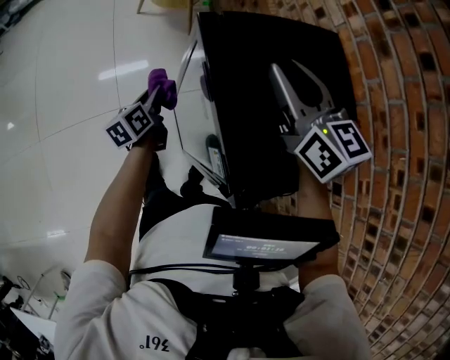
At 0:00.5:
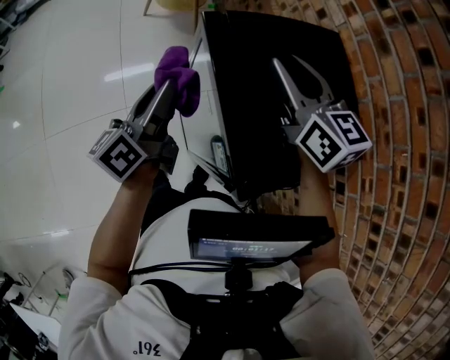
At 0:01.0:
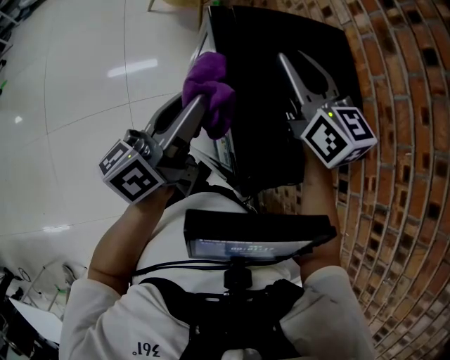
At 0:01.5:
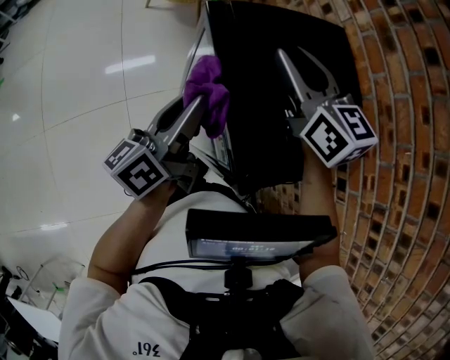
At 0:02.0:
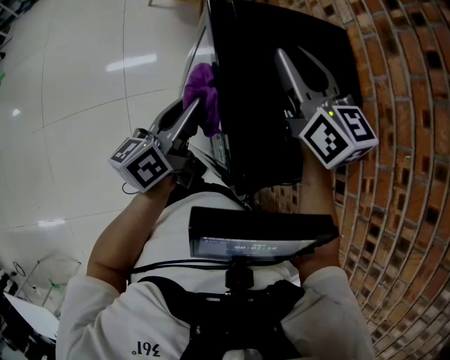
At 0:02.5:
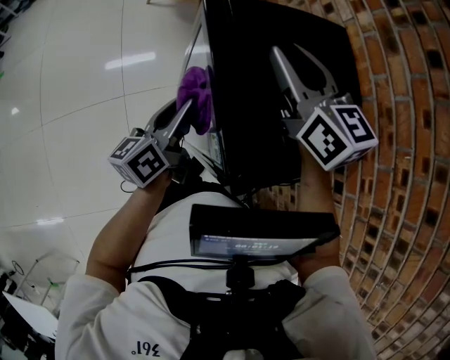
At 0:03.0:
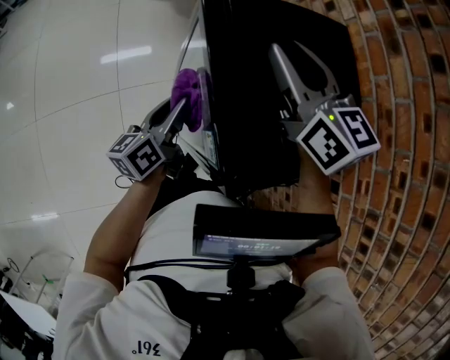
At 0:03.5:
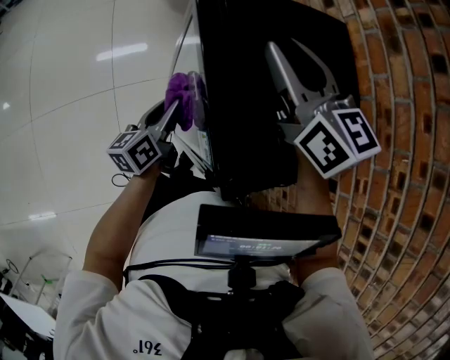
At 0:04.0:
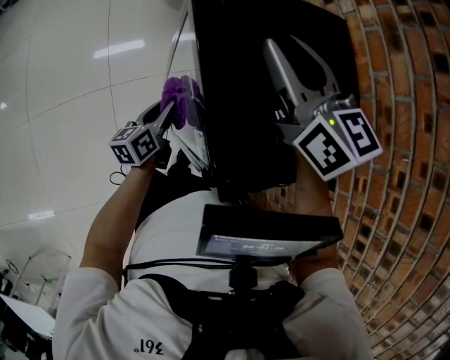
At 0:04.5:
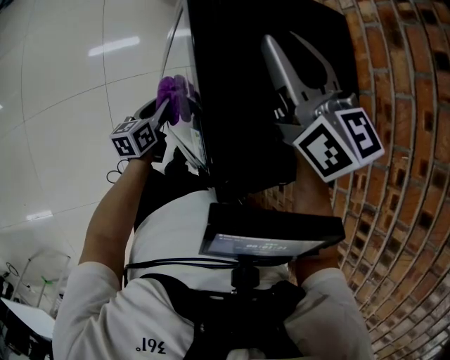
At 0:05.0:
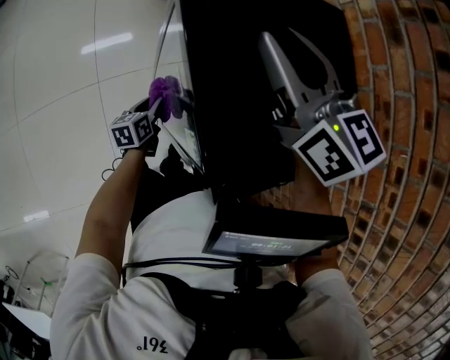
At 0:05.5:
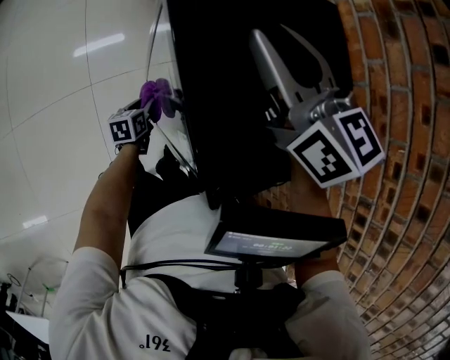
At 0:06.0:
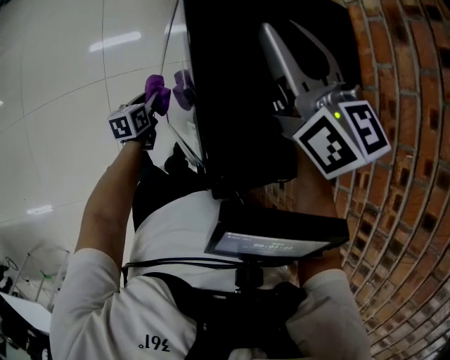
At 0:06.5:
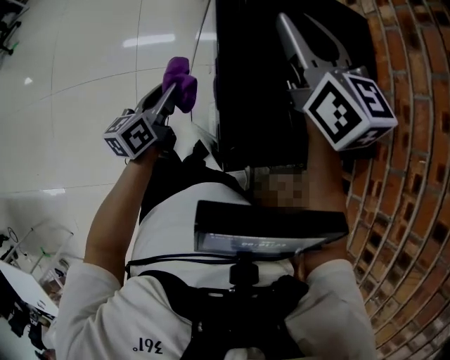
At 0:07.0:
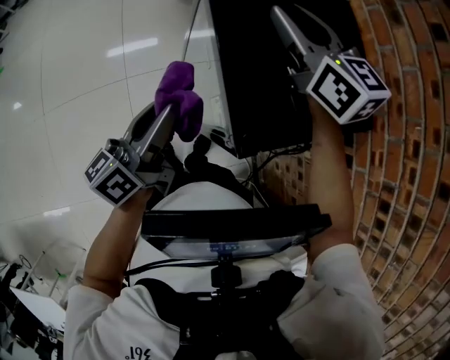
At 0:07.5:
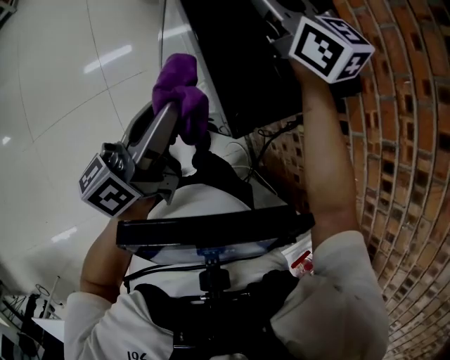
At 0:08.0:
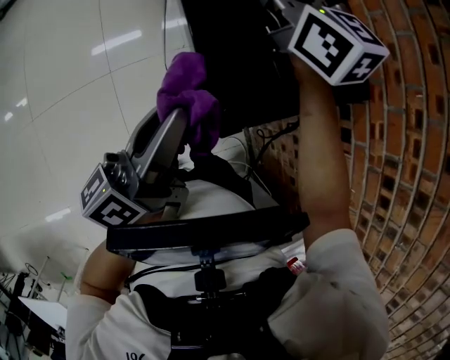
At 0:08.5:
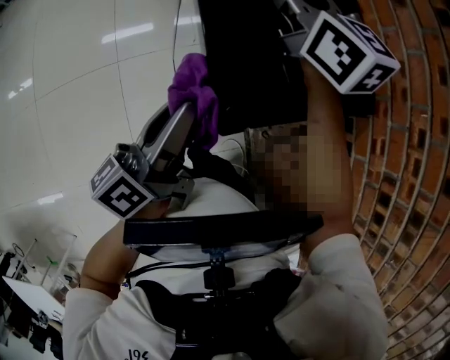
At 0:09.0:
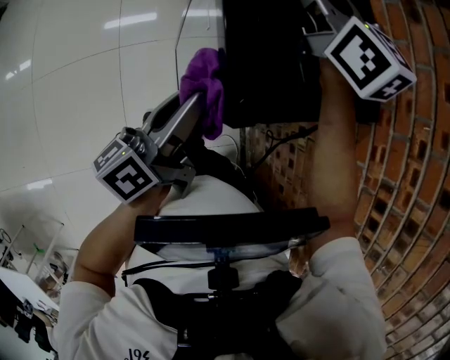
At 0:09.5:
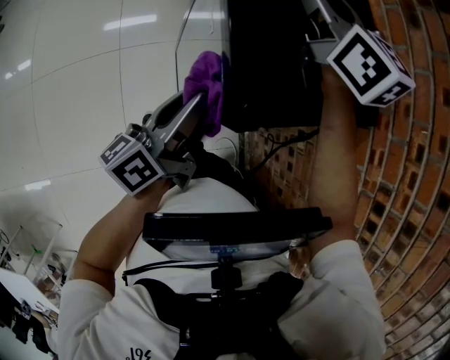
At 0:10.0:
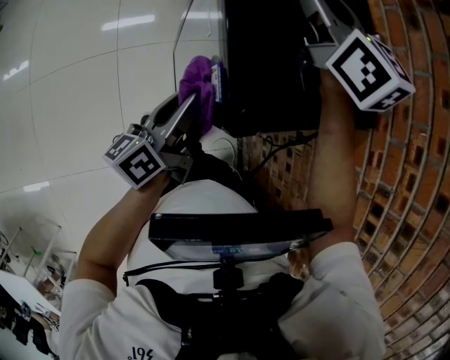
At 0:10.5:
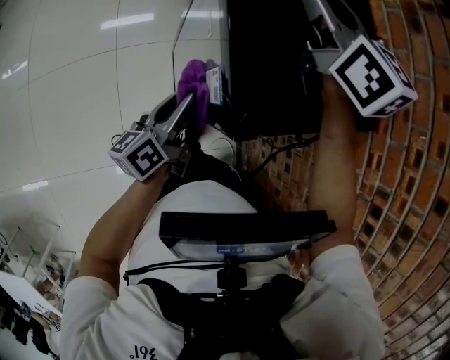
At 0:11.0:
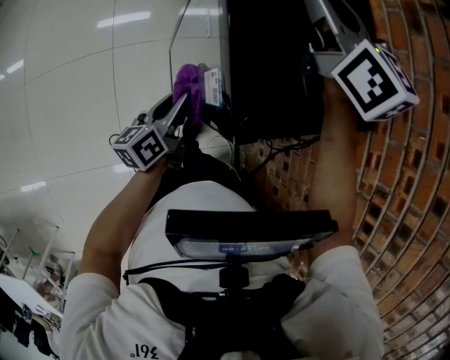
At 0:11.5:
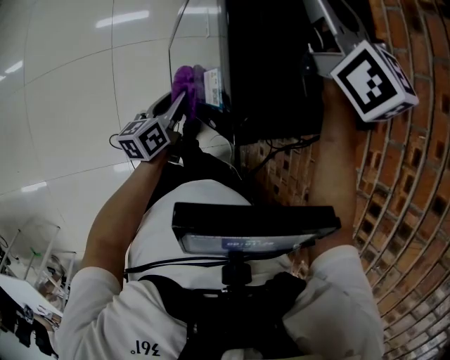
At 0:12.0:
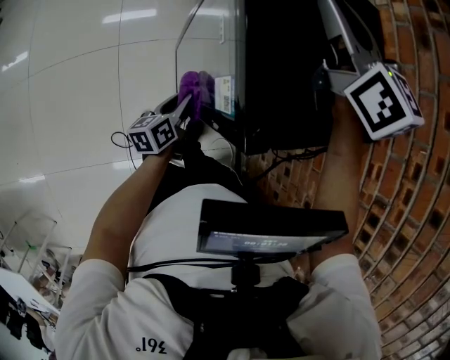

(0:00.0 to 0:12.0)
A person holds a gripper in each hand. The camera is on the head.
0:00.0 - 0:02.0: The left gripper travels upward, backward and to the right by roughly 20 cm, and turns by roughly 30 degrees.
0:02.0 - 0:04.0: The left gripper shifts about 20 cm downward, and turns by some 20 degrees.
0:04.0 - 0:06.0: The left gripper is displaced downward by roughly 10 cm.
0:06.0 - 0:08.0: The left gripper shifts about 40 cm upward, and tilts its fingers roughly 50 degrees upward.
0:08.0 - 0:10.0: The left gripper travels downward by about 15 cm.
0:10.0 - 0:12.0: The left gripper is displaced downward by roughly 20 cm, and rotates about 20 degrees.

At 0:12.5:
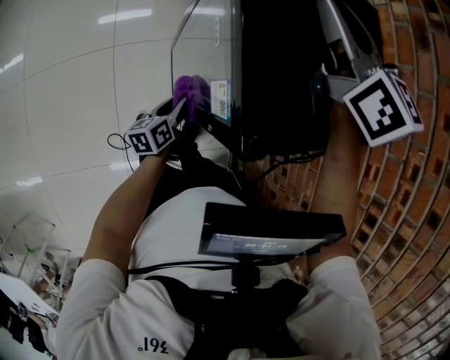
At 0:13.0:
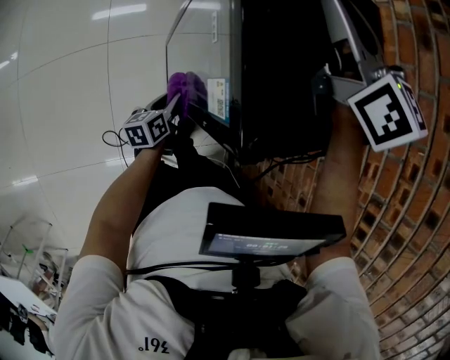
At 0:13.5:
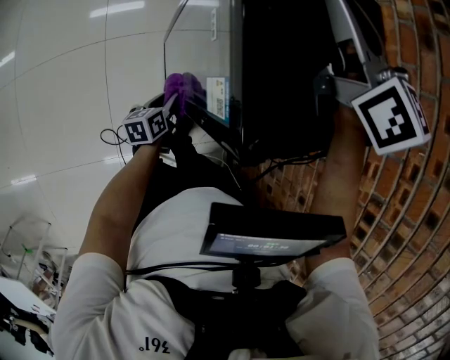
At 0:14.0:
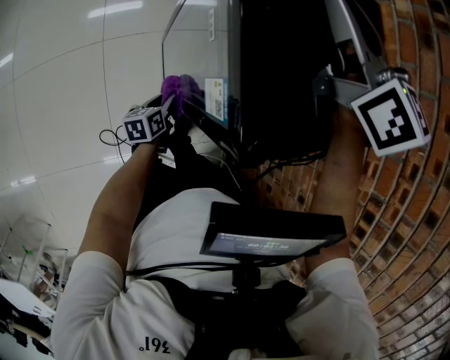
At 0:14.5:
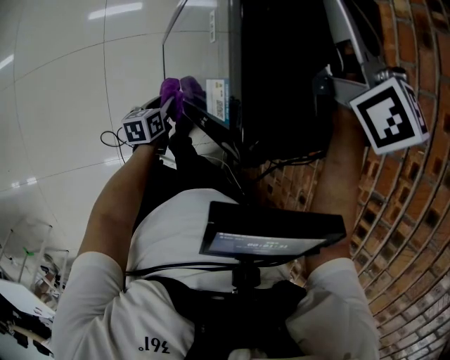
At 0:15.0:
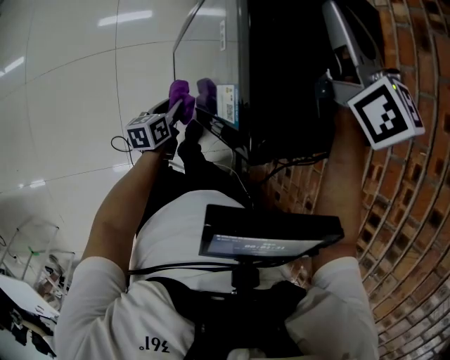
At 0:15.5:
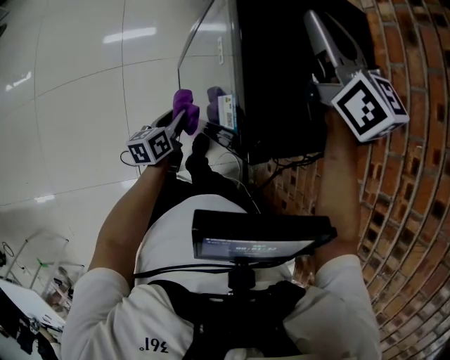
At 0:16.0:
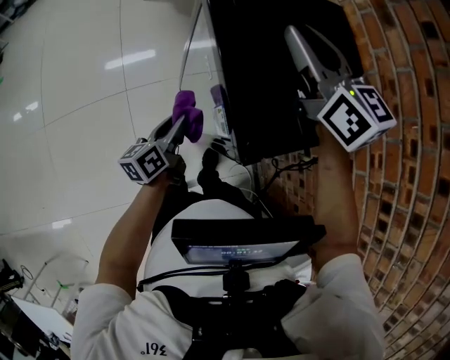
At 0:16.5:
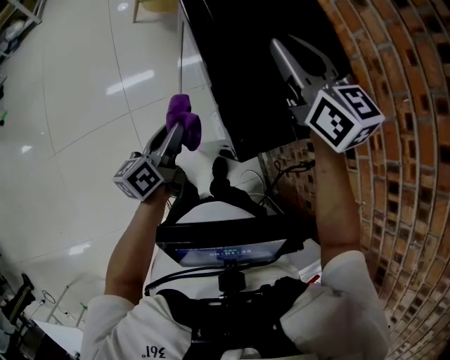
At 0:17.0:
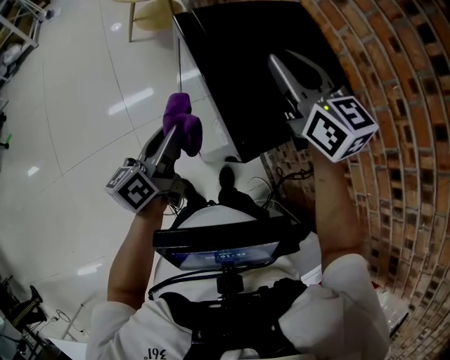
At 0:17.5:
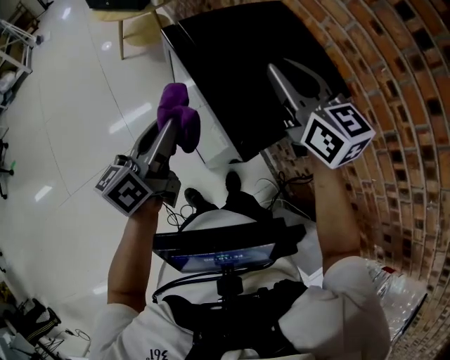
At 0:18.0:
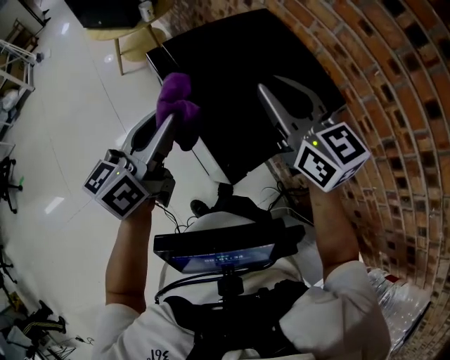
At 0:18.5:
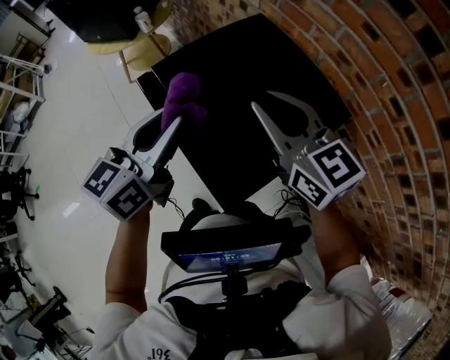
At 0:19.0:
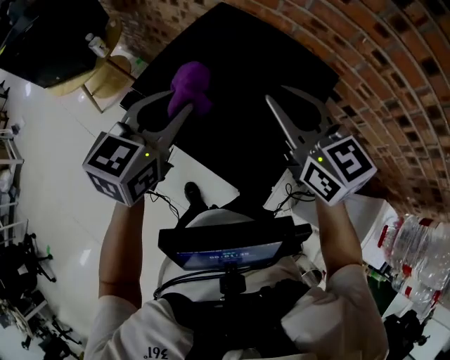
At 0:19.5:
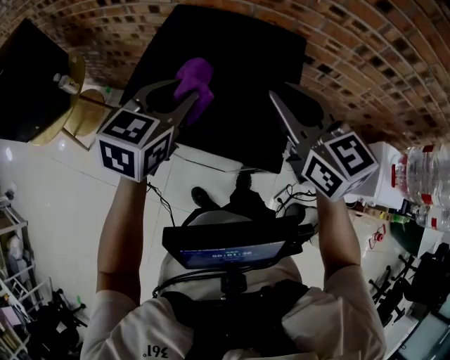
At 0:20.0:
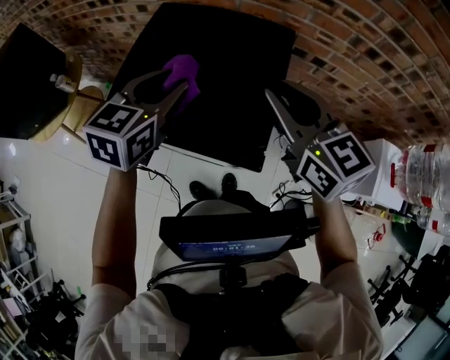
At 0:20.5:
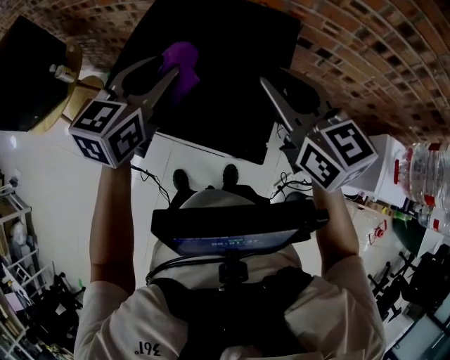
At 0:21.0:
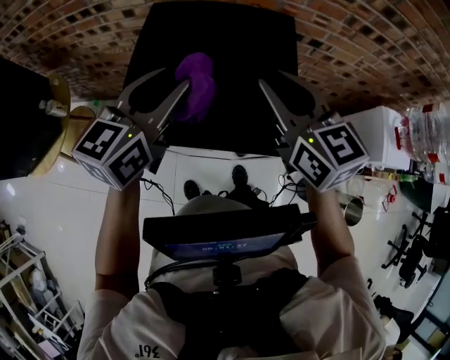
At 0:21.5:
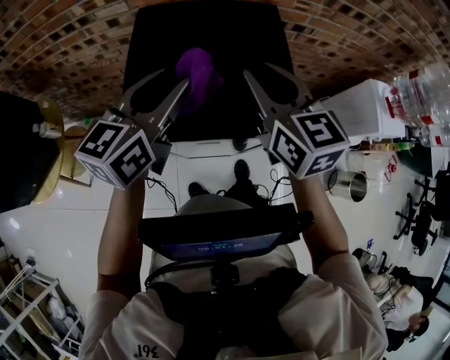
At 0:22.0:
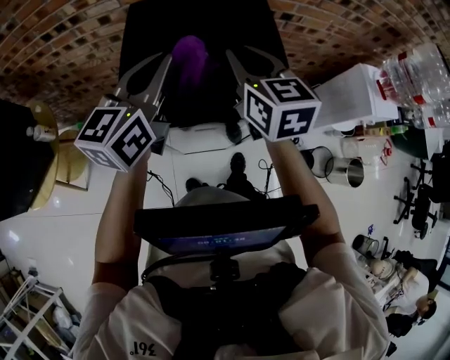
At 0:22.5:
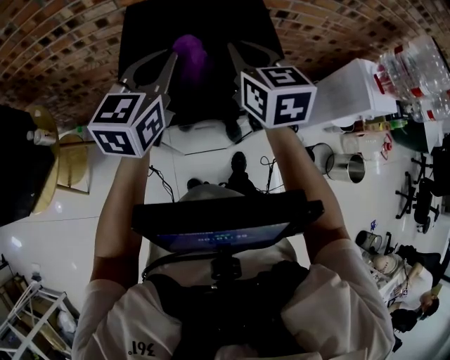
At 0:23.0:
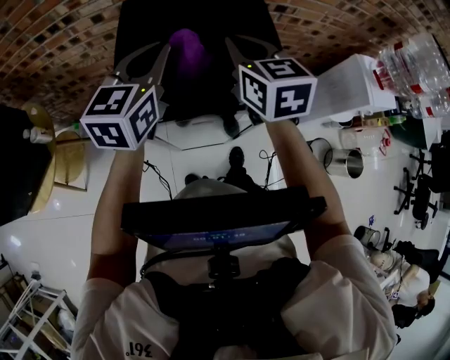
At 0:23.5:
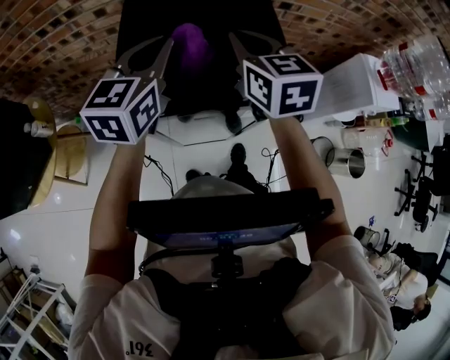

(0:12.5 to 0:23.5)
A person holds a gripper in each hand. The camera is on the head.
0:12.5 - 0:14.5: The left gripper travels downward by some 5 cm.
0:14.5 - 0:16.0: The left gripper goes roughly 20 cm upward, and turns by roughly 20 degrees.
0:16.0 - 0:18.0: The right gripper moves backward and to the right, roughly 10 cm. The left gripper moves upward, roughly 30 cm, and rotates about 40 degrees.
0:18.0 - 0:20.0: The left gripper shifts by approximately 15 cm, and turns by approximately 60 degrees. The right gripper changes place by approximately 10 cm, and turns by approximately 40 degrees.
0:20.0 - 0:21.5: The left gripper shifts by some 5 cm, and turns by roughly 30 degrees. Meanwhile the right gripper shifts roughly 10 cm to the left, and rotates about 30 degrees.
0:21.5 - 0:23.5: The right gripper closes its fingers, while the left gripper closes.

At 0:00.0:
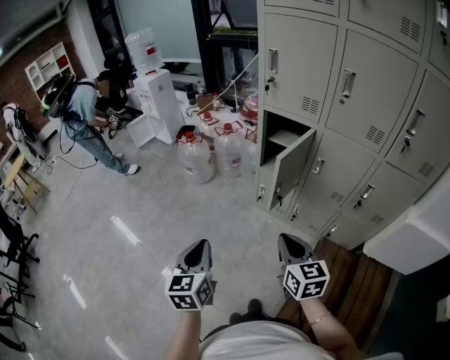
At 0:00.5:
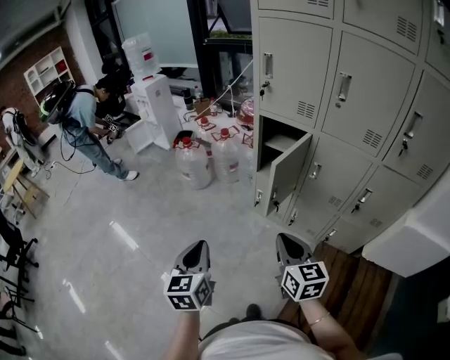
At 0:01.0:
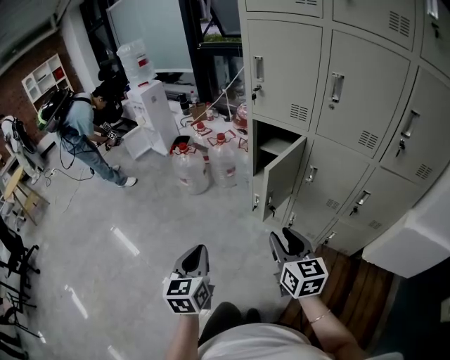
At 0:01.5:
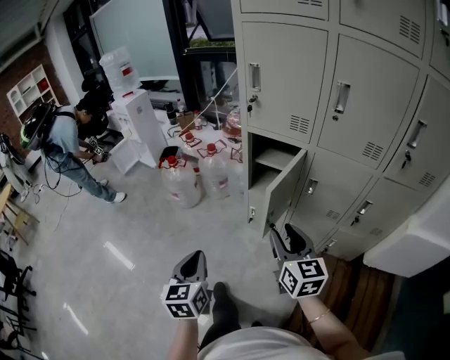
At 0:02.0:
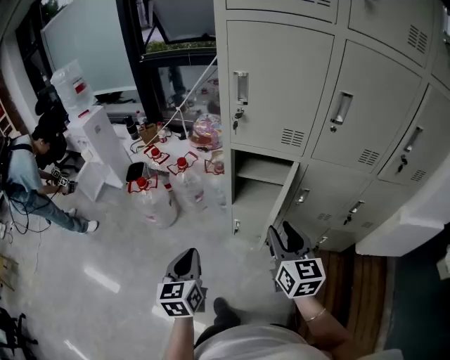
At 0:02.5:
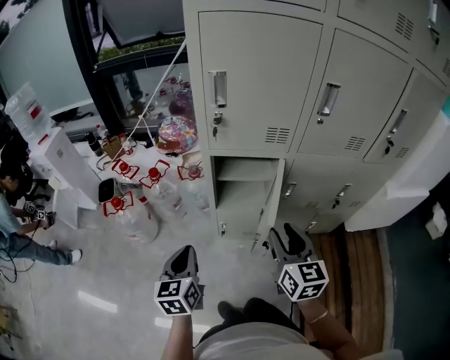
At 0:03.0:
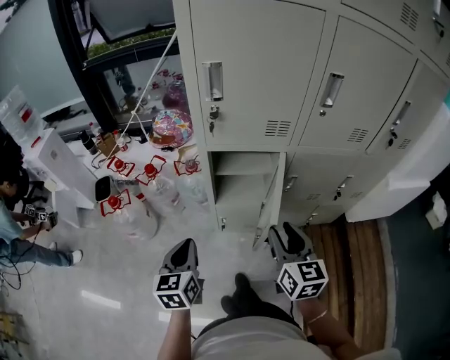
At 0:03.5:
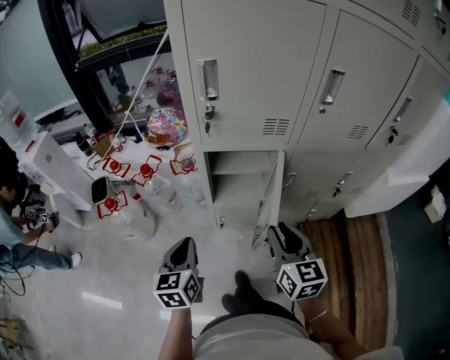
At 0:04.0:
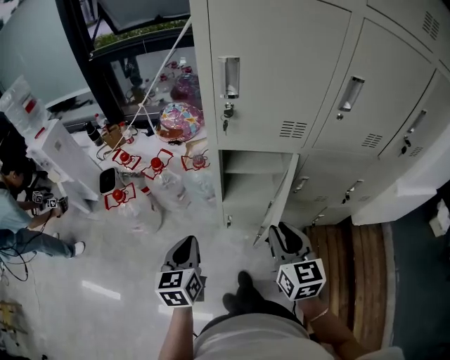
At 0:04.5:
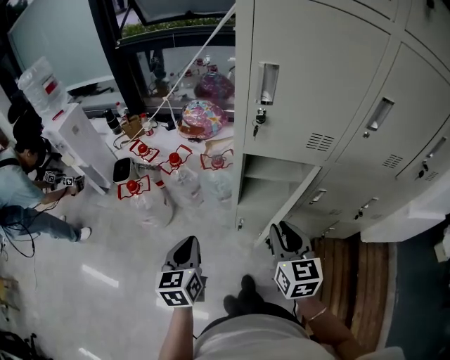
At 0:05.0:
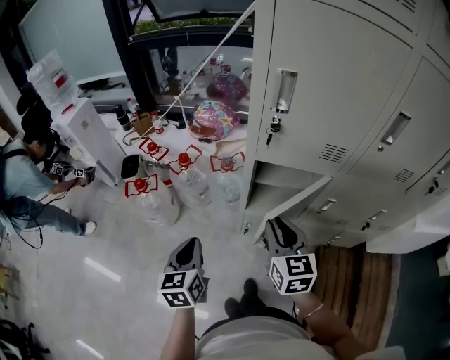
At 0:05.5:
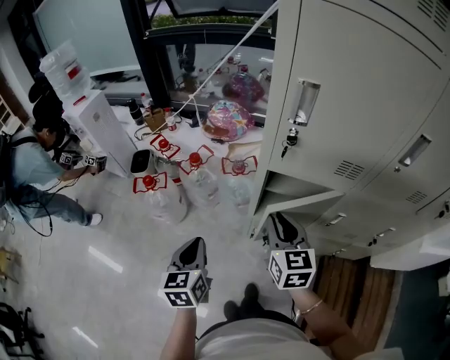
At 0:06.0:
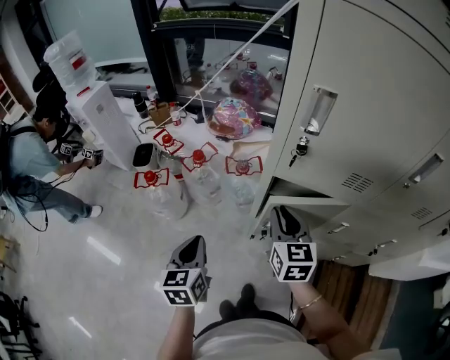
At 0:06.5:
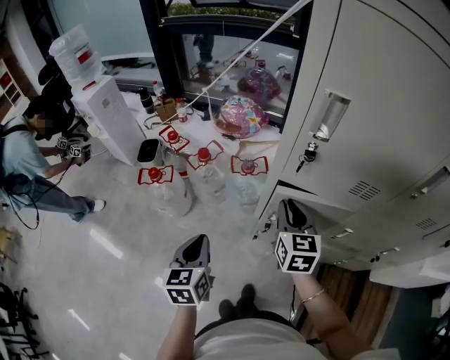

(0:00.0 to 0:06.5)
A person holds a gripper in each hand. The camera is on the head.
0:00.0 - 0:02.0: The two grippers go some 30 cm forward. The right gripper rotates about 20 degrees, and opens up.
0:02.0 - 0:04.5: The two grippers go some 15 cm forward and to the left.
0:04.5 - 0:06.5: The left gripper moves forward, some 10 cm, while the right gripper goes about 20 cm forward.
